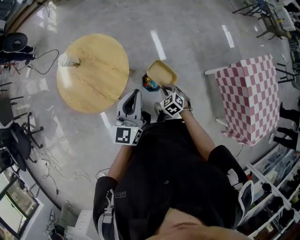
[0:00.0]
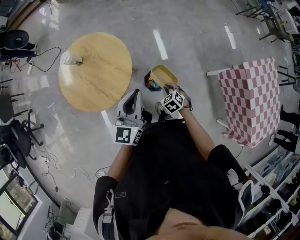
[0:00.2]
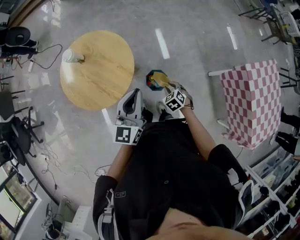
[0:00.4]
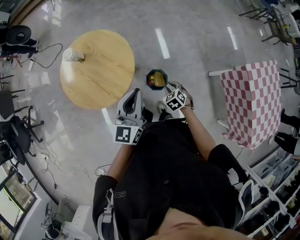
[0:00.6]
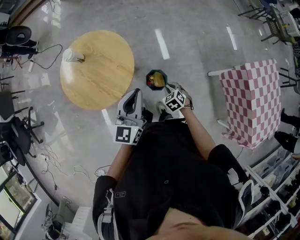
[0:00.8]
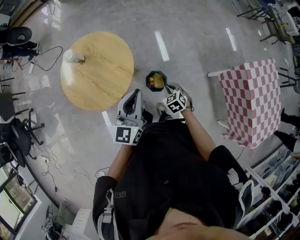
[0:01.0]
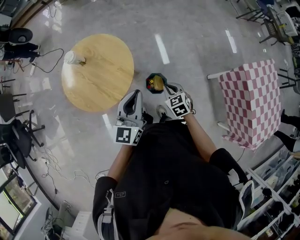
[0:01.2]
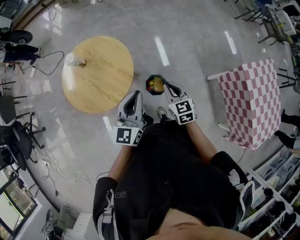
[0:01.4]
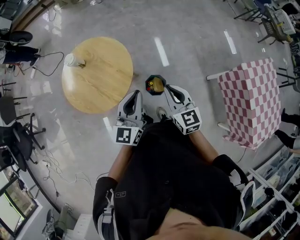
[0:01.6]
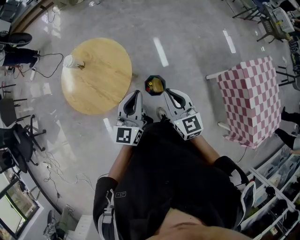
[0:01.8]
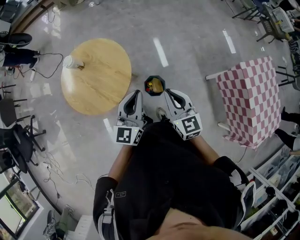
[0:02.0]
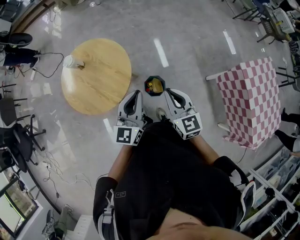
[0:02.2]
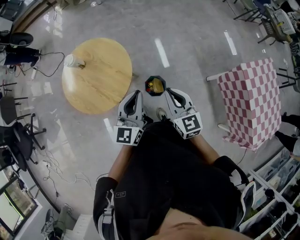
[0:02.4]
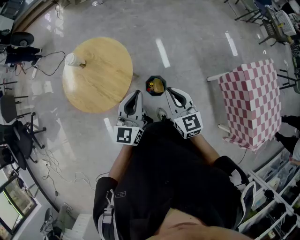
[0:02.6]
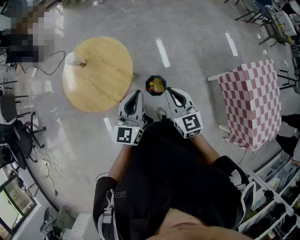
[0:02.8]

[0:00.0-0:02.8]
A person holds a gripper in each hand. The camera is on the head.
0:00.0 to 0:01.4: The right gripper moves upward, some 15 cm, and changes its angle by about 30 degrees.
0:01.4 to 0:02.8: The right gripper shifts approximately 10 cm upward.

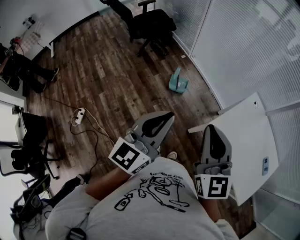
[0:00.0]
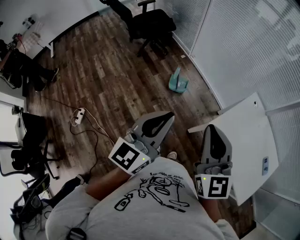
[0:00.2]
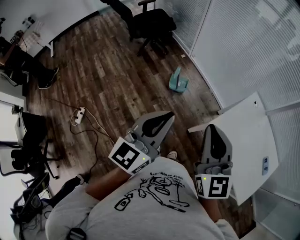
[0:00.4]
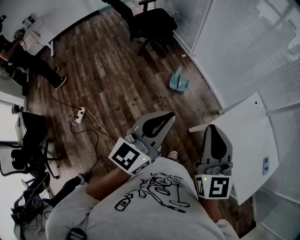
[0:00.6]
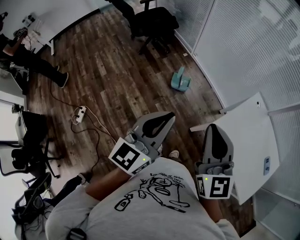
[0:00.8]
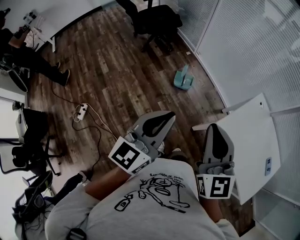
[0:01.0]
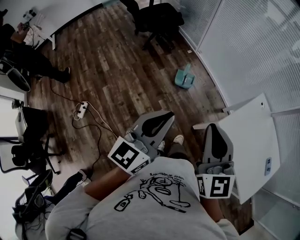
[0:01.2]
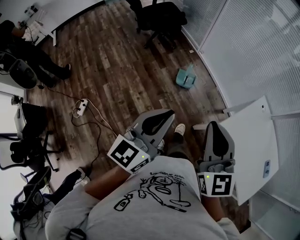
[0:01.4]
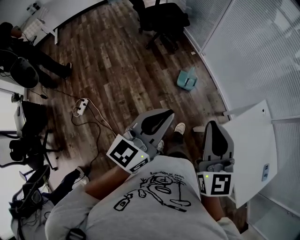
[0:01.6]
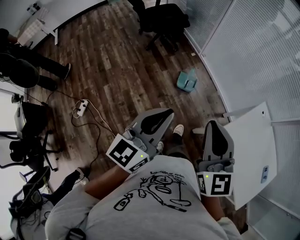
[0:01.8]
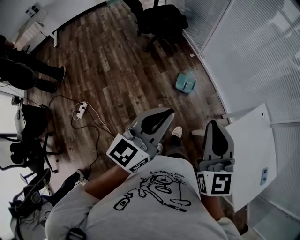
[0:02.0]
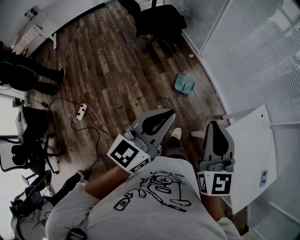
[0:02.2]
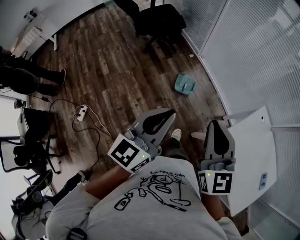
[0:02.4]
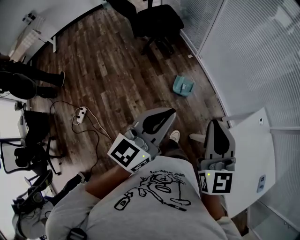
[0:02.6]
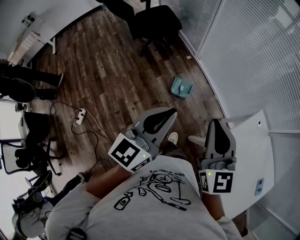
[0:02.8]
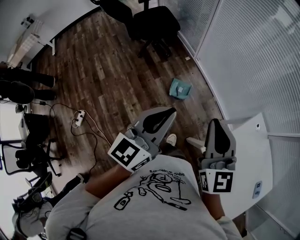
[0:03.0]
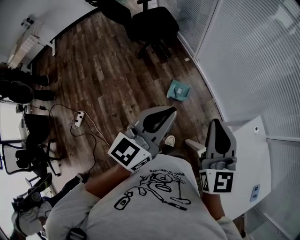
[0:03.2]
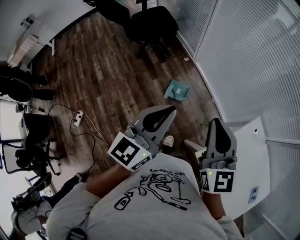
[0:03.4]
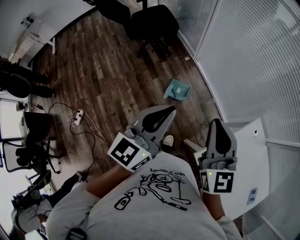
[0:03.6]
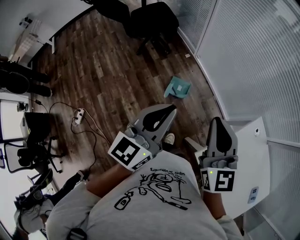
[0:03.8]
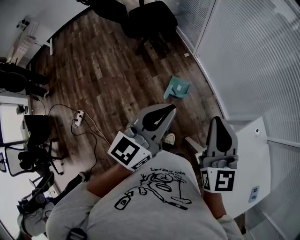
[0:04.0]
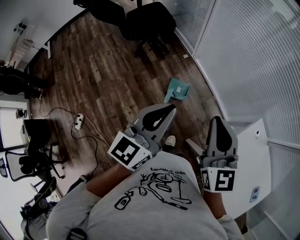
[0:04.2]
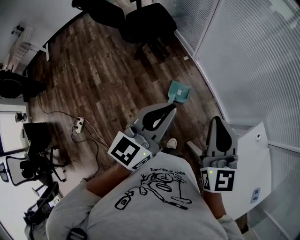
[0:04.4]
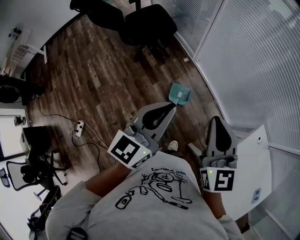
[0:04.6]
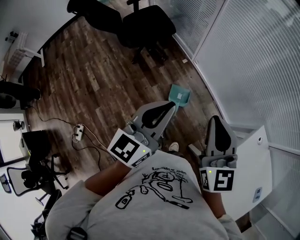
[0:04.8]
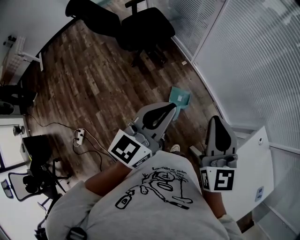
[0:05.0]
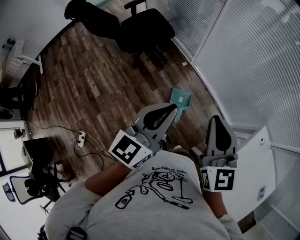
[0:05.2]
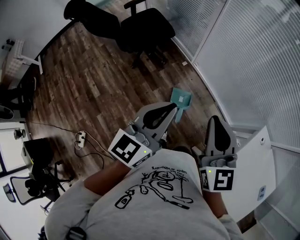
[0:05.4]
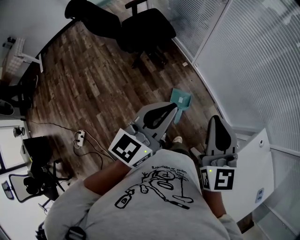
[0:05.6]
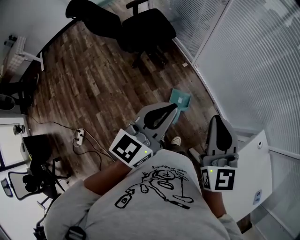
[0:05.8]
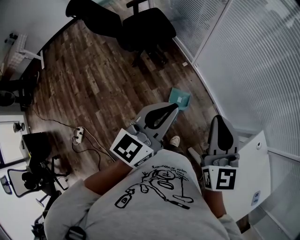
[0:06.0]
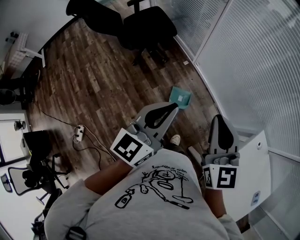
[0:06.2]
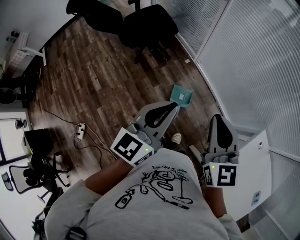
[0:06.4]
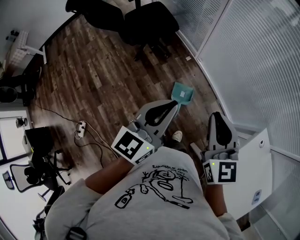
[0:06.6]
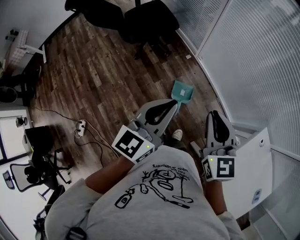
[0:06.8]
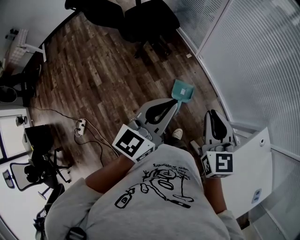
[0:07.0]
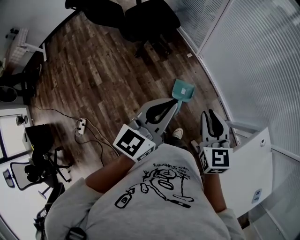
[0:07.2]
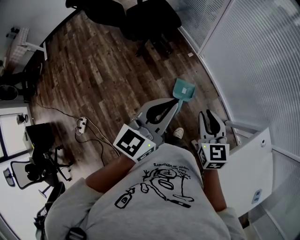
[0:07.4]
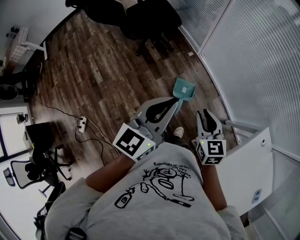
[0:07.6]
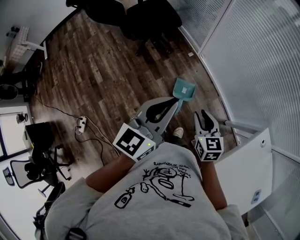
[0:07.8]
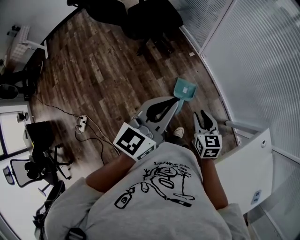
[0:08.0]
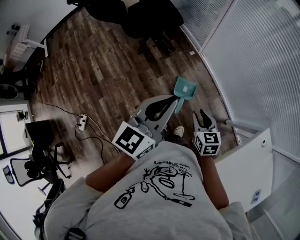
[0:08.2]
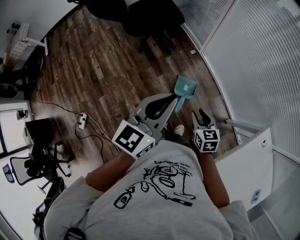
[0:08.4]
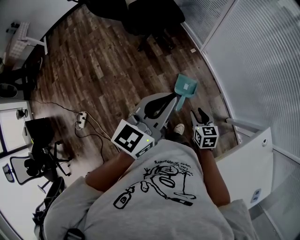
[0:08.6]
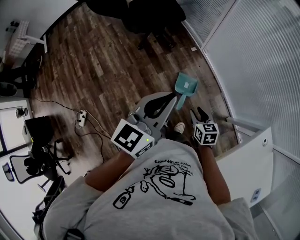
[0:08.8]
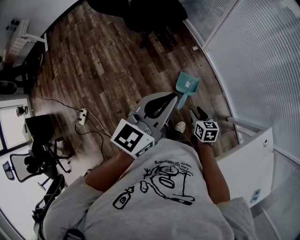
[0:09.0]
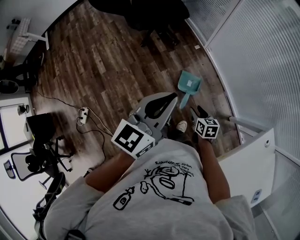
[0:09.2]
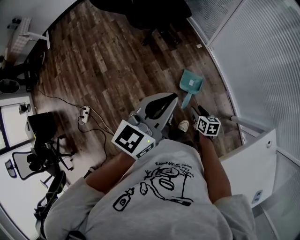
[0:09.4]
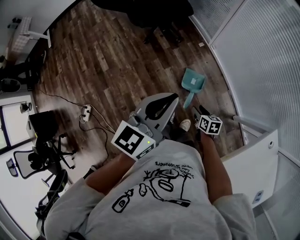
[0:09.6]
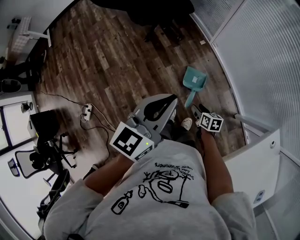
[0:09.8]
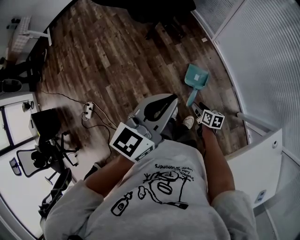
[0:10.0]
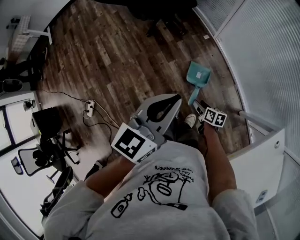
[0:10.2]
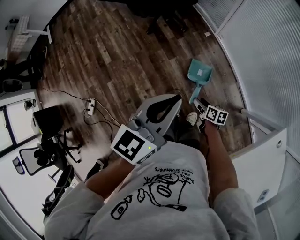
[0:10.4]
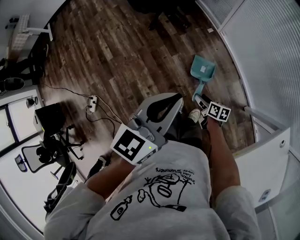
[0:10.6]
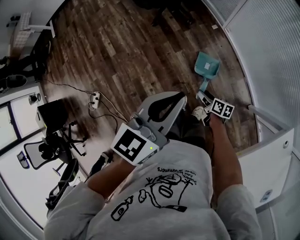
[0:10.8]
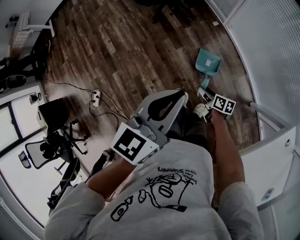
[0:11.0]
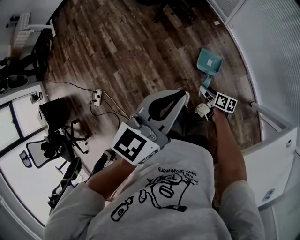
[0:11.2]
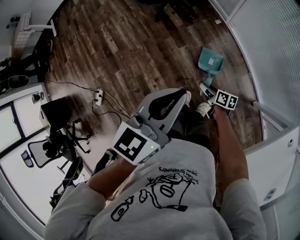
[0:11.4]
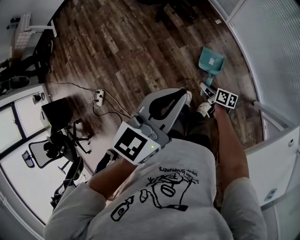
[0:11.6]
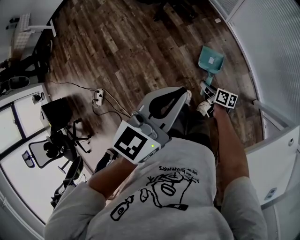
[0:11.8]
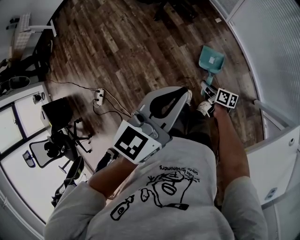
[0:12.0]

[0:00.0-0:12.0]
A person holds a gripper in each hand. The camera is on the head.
0:00.0 to 0:01.6: Both grippers move to the left, approximately 10 cm.
0:01.6 to 0:03.0: Both grippers travel together forward and to the right, roughly 25 cm.
0:03.0 to 0:04.4: The grippers both shift forward by approximately 15 cm.
0:04.4 to 0:06.0: The grippers both shift forward and to the left by roughly 10 cm.
0:06.0 to 0:07.6: The right gripper is displaced downward by some 20 cm, and swivels some 20 degrees.
0:07.6 to 0:09.0: The right gripper goes about 20 cm downward, and swivels some 20 degrees.
0:09.0 to 0:10.4: The right gripper moves downward, roughly 15 cm, and turns by some 30 degrees. The left gripper shifts some 5 cm downward.
0:10.4 to 0:12.0: The right gripper changes place by approximately 5 cm, and closes up.

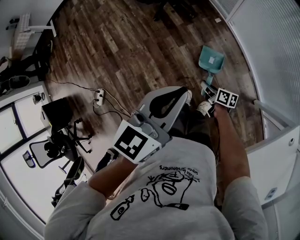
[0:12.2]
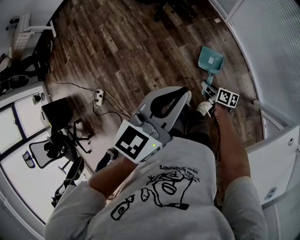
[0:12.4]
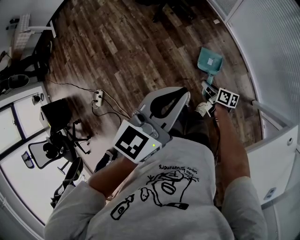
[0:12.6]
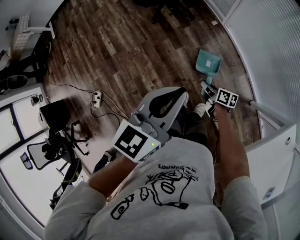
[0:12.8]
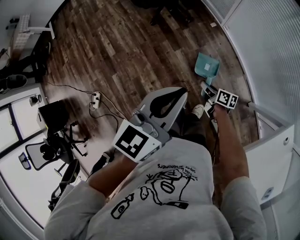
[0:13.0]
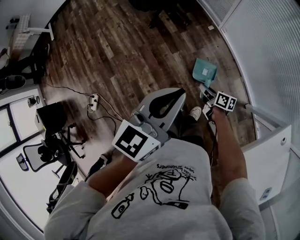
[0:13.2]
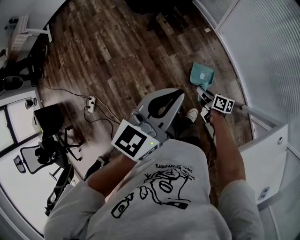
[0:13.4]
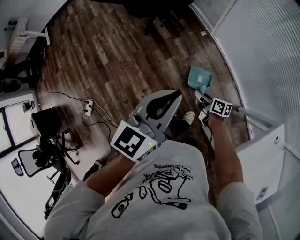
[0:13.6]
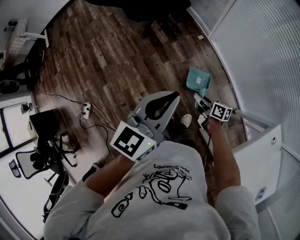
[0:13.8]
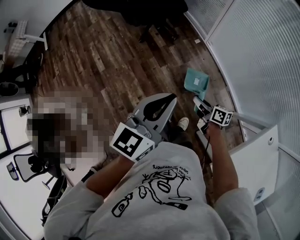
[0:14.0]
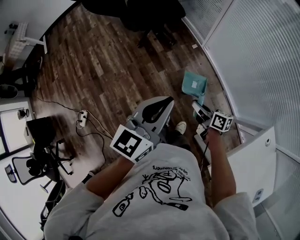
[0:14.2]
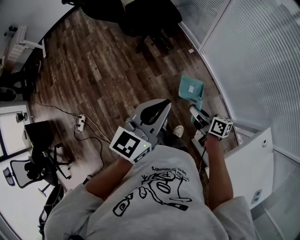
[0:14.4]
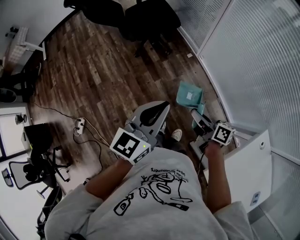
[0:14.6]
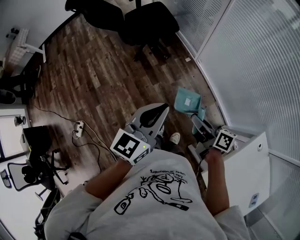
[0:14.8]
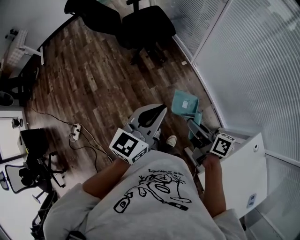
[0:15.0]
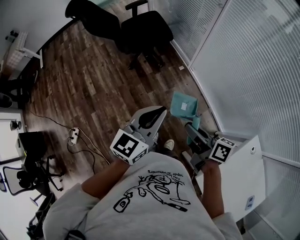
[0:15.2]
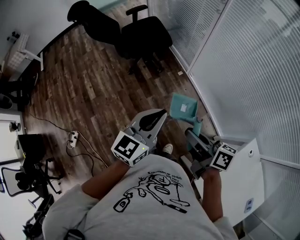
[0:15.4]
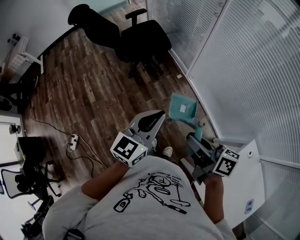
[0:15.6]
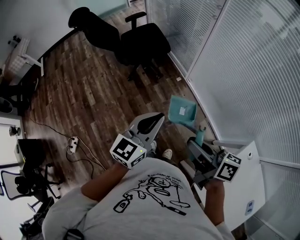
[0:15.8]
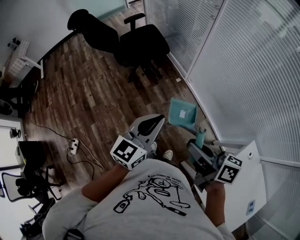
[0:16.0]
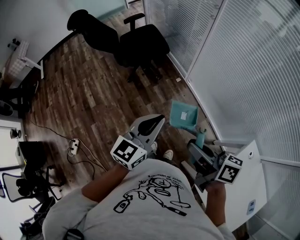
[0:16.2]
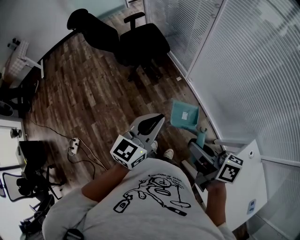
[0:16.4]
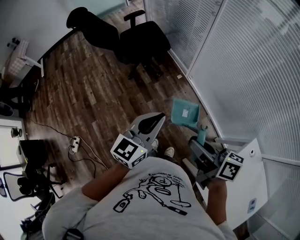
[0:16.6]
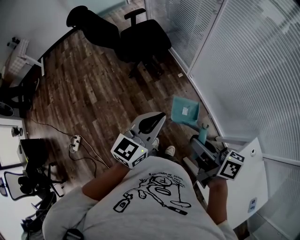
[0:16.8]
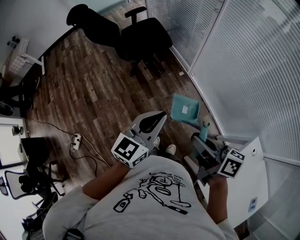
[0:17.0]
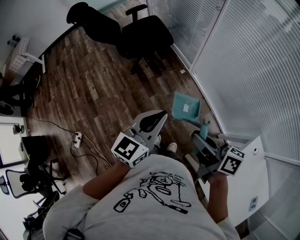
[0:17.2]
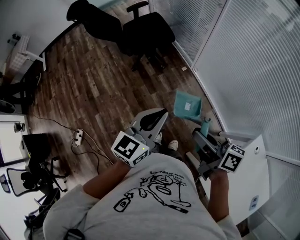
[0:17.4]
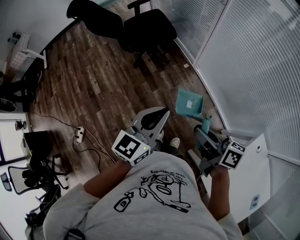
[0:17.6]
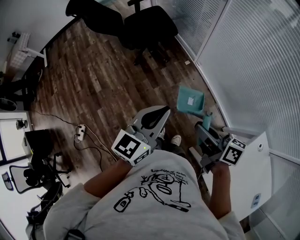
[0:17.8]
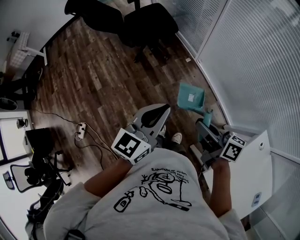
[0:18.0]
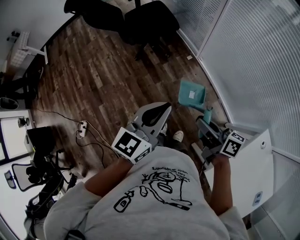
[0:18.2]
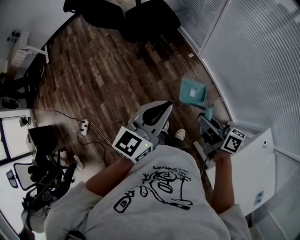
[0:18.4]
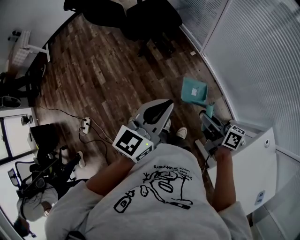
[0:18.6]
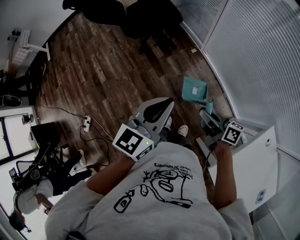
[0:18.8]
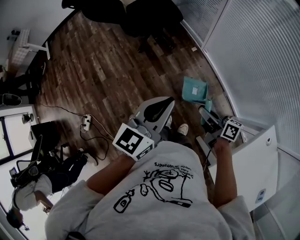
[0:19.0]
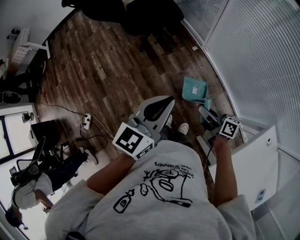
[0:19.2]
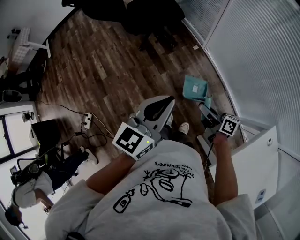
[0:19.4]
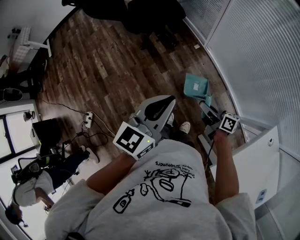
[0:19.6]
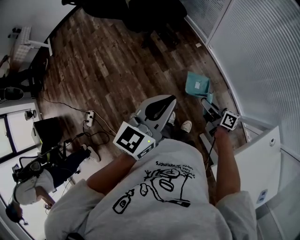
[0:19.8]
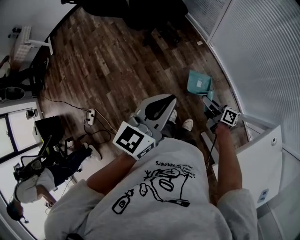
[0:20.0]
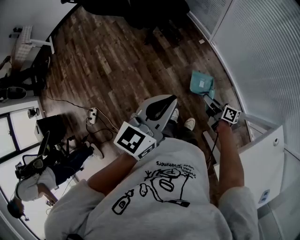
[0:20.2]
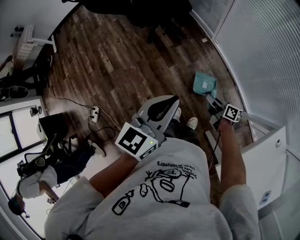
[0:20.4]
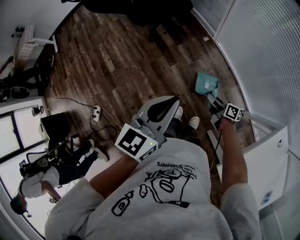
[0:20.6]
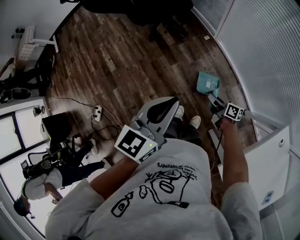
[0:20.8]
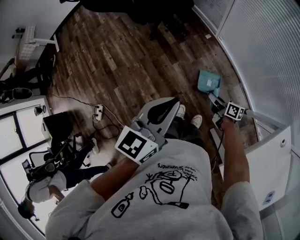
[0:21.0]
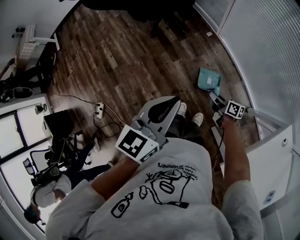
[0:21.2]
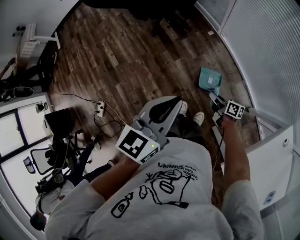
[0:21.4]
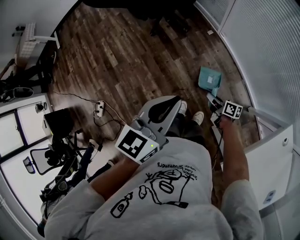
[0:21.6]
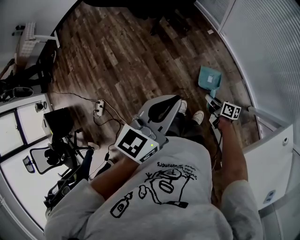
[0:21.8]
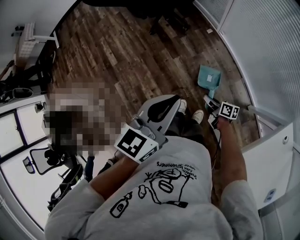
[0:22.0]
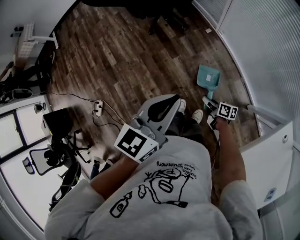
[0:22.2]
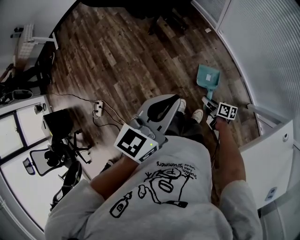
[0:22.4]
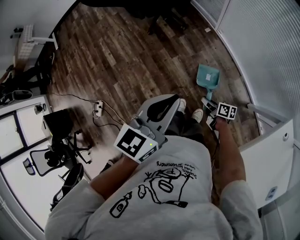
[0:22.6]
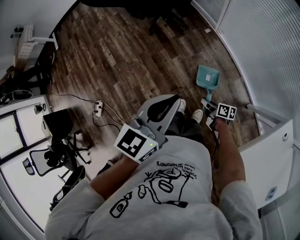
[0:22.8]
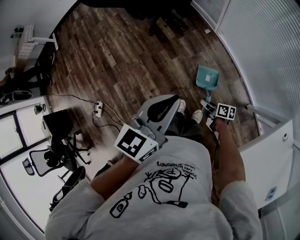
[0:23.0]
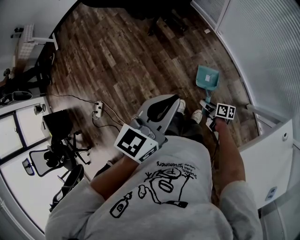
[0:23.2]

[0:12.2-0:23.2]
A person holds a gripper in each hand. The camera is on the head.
0:12.2 to 0:13.8: The left gripper ends up some 5 cm from where it was. The right gripper travels upward and to the right by roughly 10 cm.
0:13.8 to 0:15.4: The right gripper goes roughly 35 cm upward. Meanwhile the left gripper shifts approximately 5 cm upward.
0:17.0 to 0:18.4: The right gripper moves downward, approximately 10 cm.
0:18.4 to 0:20.0: The right gripper goes about 20 cm downward.
0:20.0 to 0:21.6: The right gripper moves downward, about 15 cm.
0:21.6 to 0:23.2: The right gripper heads backward, covering approximately 5 cm.
